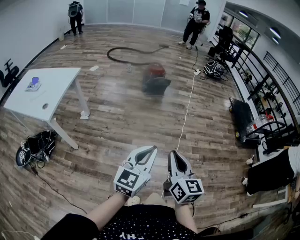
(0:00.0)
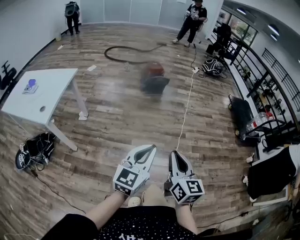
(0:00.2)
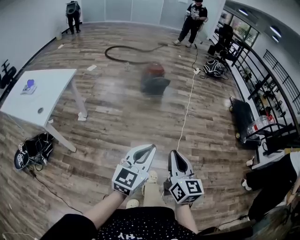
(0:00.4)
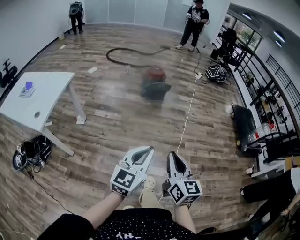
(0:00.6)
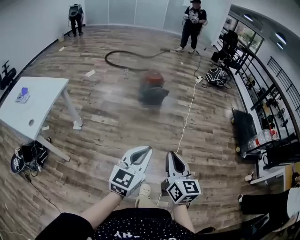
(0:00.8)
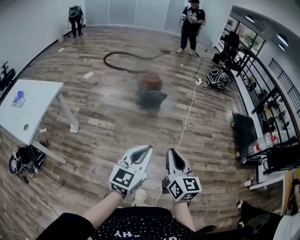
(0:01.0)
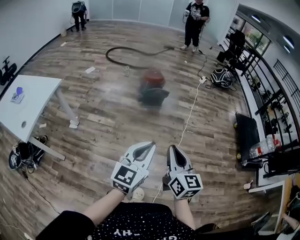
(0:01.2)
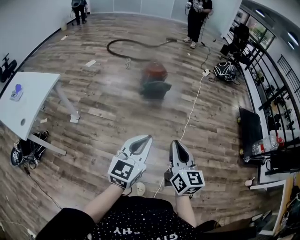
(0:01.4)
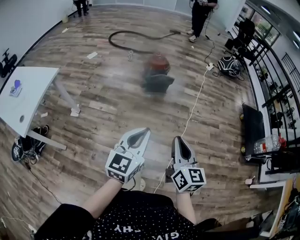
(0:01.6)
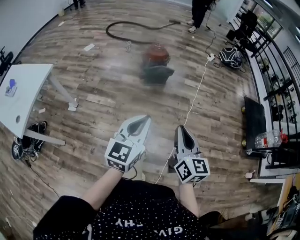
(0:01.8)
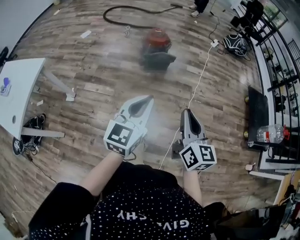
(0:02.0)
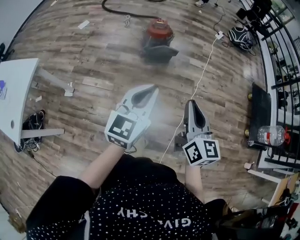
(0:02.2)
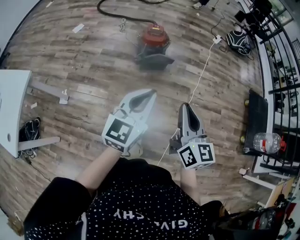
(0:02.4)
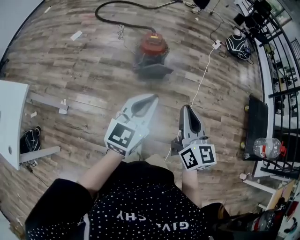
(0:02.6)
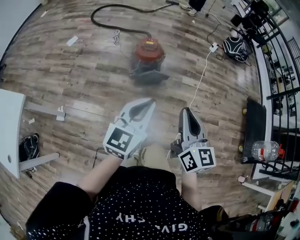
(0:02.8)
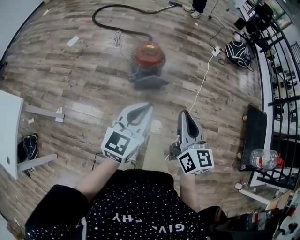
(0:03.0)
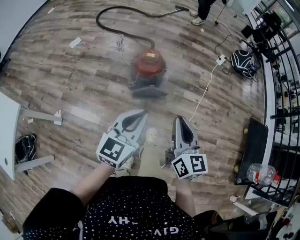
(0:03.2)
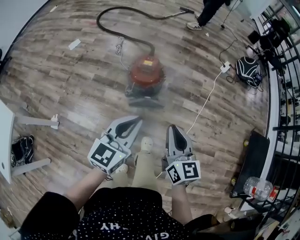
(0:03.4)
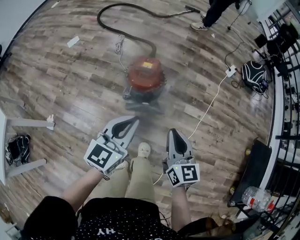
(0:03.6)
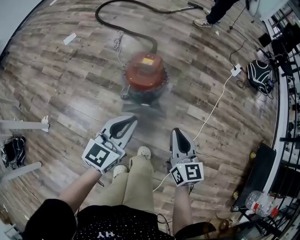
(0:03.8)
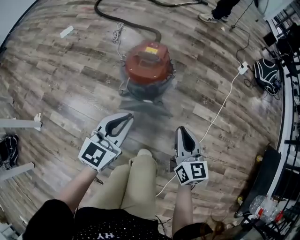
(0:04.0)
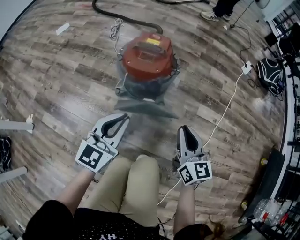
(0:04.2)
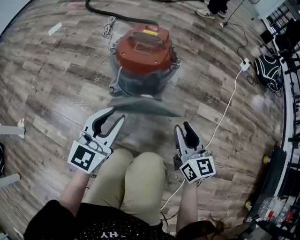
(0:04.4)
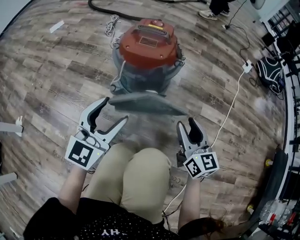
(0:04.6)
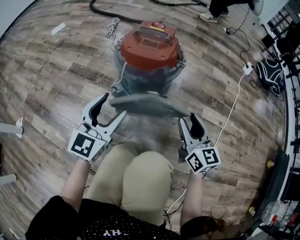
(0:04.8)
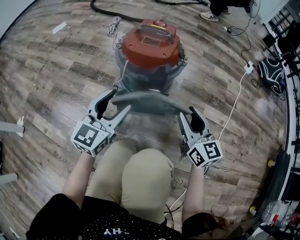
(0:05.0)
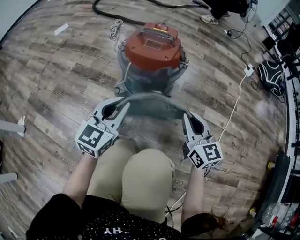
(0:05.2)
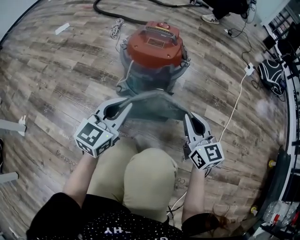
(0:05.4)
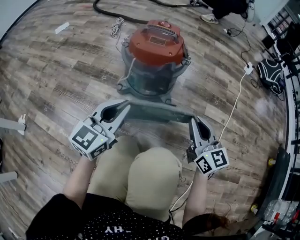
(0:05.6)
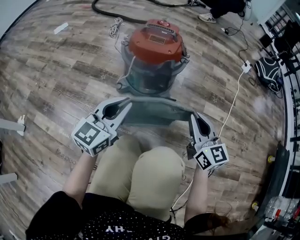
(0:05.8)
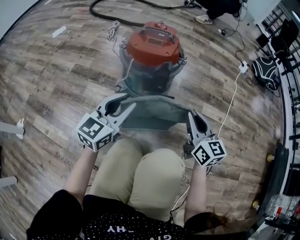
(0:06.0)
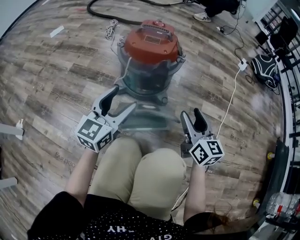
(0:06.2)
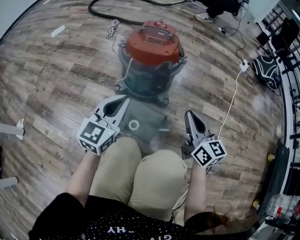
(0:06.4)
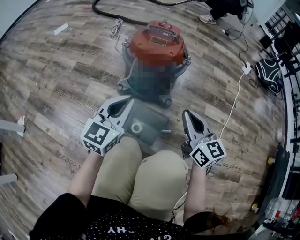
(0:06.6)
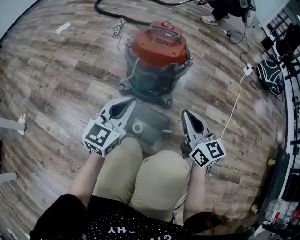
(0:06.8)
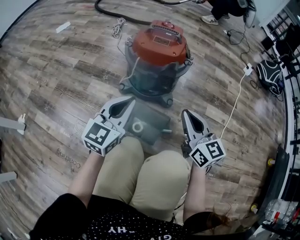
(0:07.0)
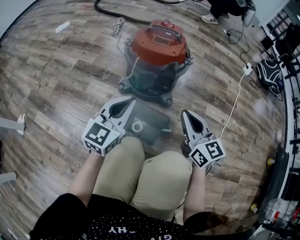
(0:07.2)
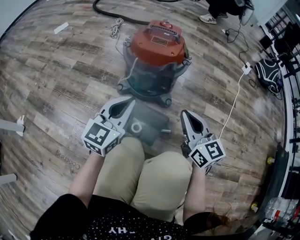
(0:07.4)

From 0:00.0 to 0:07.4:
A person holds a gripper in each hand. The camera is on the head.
From 0:00.0 to 0:01.4: The grippers both shift forward by approximately 35 cm.
From 0:01.4 to 0:03.0: Both grippers are carried forward, about 50 cm.
From 0:03.0 to 0:04.4: Both grippers travel together downward and forward, roughly 60 cm. The right gripper opens its fingers.
From 0:04.4 to 0:06.0: The left gripper is displaced downward by about 5 cm, and opens, then closes again.
From 0:06.0 to 0:07.4: The left gripper opens, then closes once more. Meanwhile the right gripper opens, then closes again.

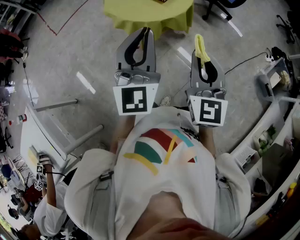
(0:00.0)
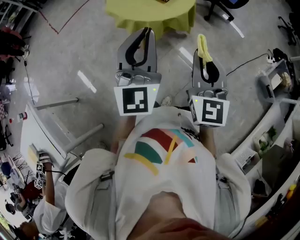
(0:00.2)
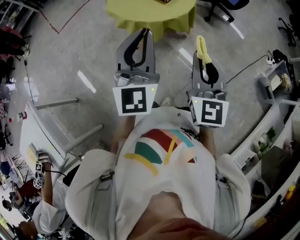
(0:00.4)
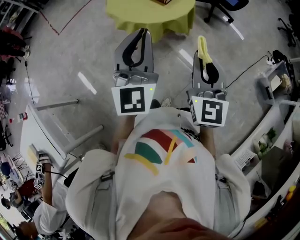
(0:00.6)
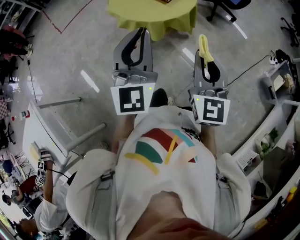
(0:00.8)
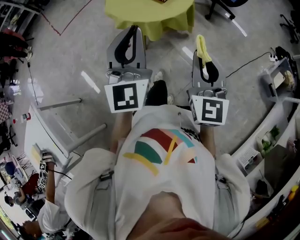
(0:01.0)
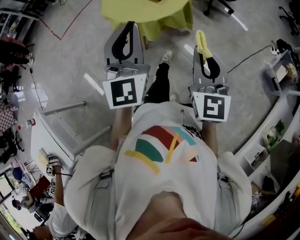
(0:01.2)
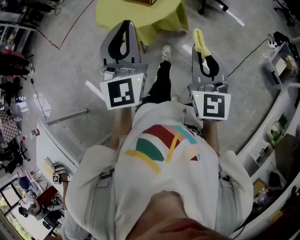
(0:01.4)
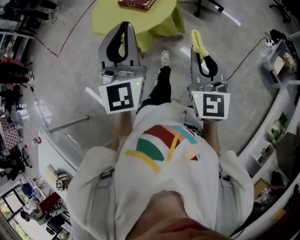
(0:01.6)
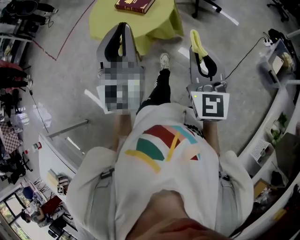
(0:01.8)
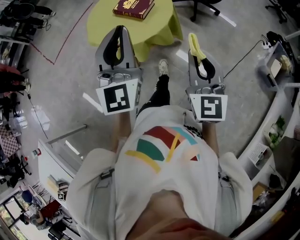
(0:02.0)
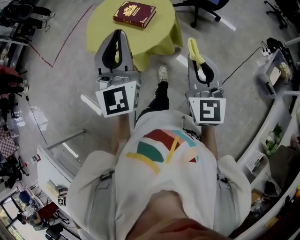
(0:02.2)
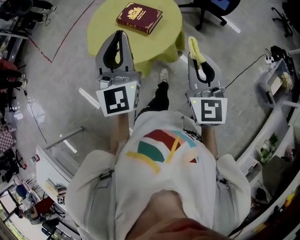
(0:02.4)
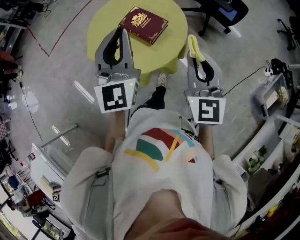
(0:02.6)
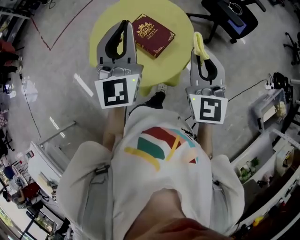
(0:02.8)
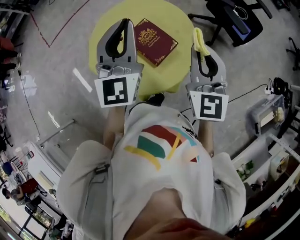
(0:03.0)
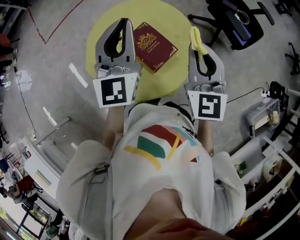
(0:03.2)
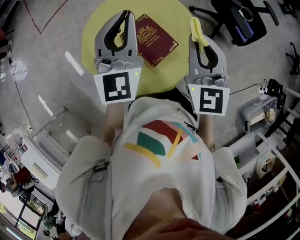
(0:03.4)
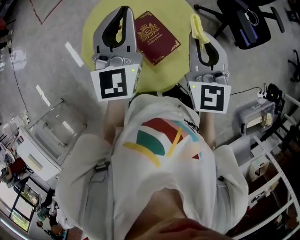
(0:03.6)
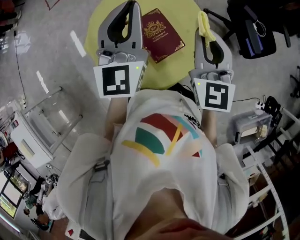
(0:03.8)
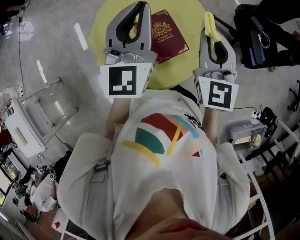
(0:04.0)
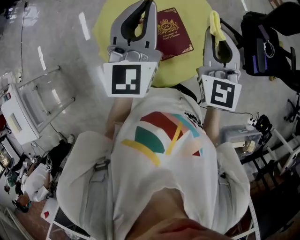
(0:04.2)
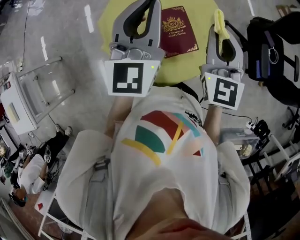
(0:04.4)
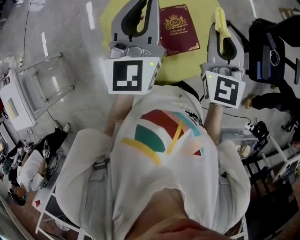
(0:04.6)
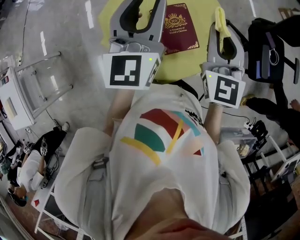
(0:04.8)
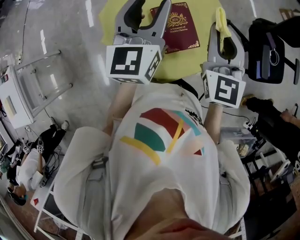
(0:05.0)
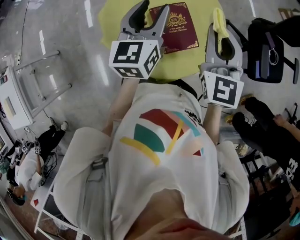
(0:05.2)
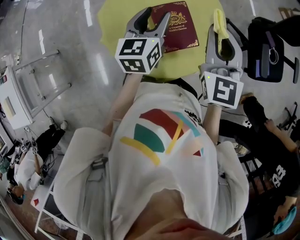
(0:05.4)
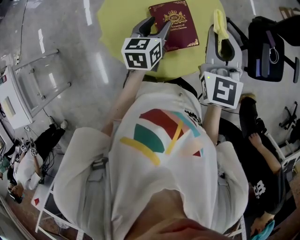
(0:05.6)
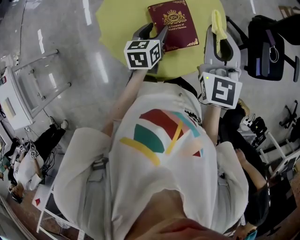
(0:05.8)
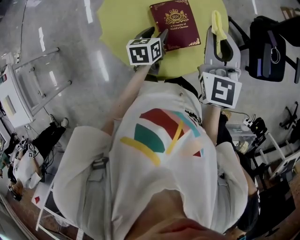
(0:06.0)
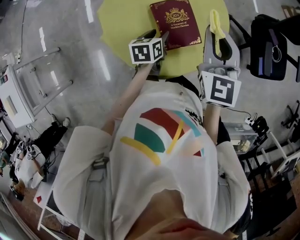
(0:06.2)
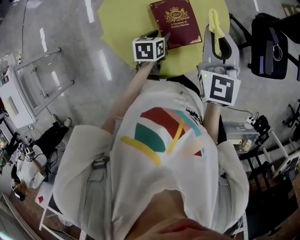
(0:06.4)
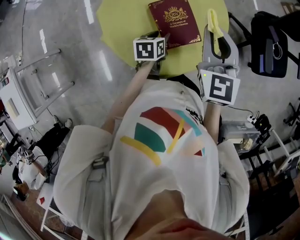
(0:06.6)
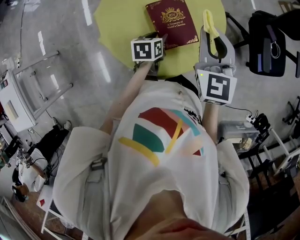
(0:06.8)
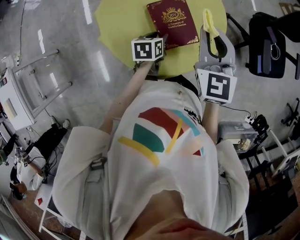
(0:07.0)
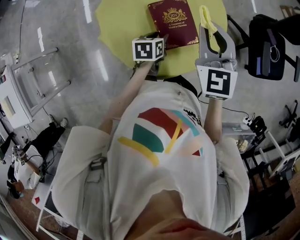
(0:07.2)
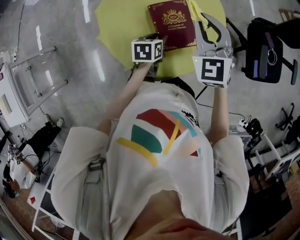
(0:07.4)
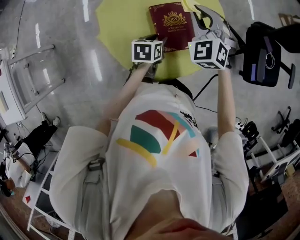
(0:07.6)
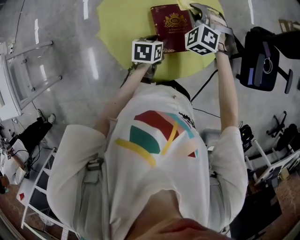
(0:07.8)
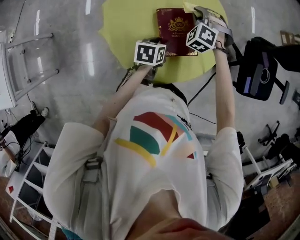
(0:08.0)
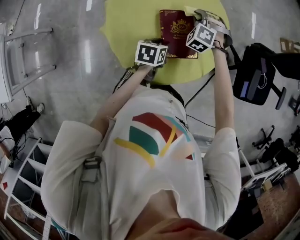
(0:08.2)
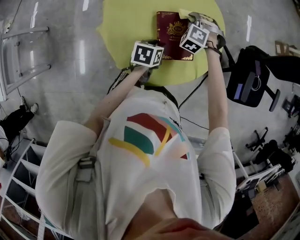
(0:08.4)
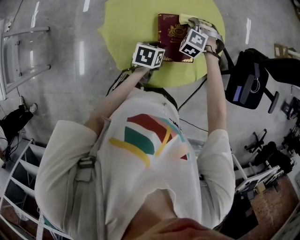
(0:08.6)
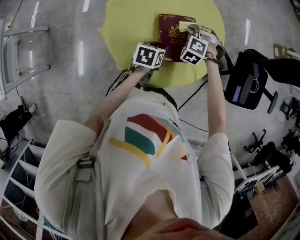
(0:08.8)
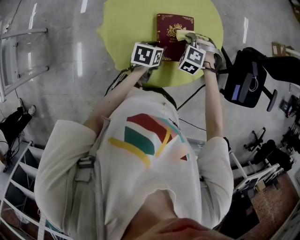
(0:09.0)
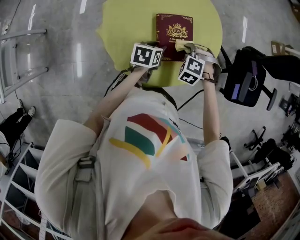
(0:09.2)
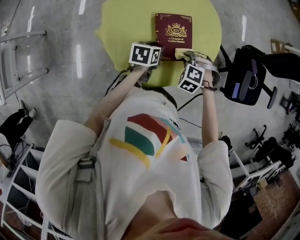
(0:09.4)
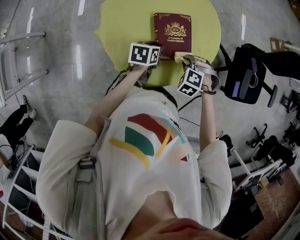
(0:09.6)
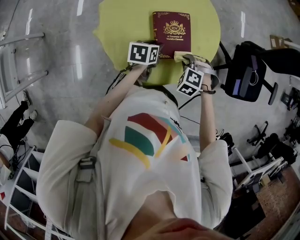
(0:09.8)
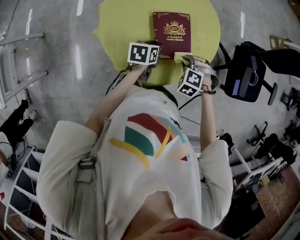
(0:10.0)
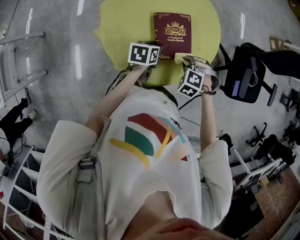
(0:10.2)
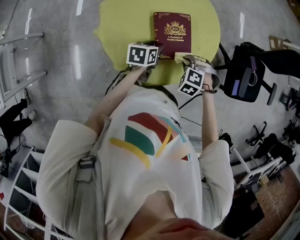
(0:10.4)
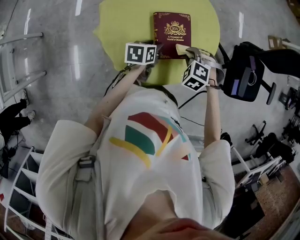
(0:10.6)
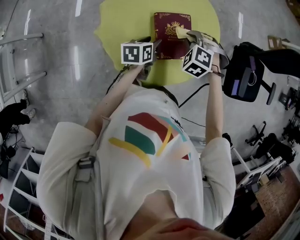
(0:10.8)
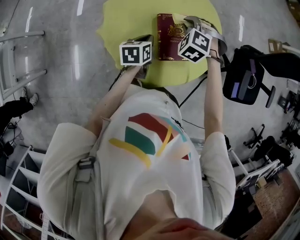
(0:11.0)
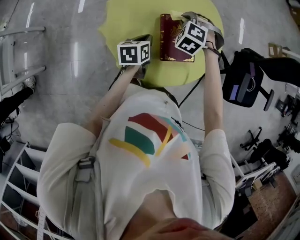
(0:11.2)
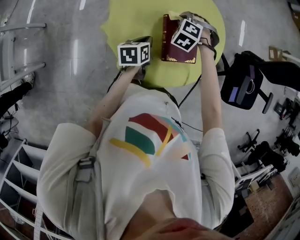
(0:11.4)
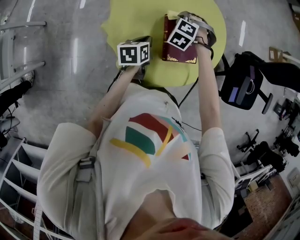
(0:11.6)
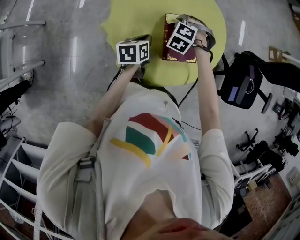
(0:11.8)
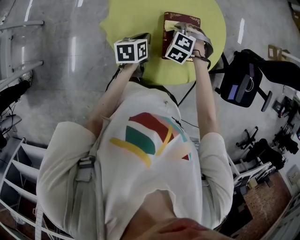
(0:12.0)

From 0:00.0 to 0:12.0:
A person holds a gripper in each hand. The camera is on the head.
From 0:00.0 to 0:01.6: The left gripper goes about 5 cm forward, while the right gripper is displaced to the right by about 5 cm.
From 0:01.6 to 0:03.0: Both grippers are carried forward, roughly 40 cm.
From 0:03.0 to 0:04.4: The left gripper ends up about 5 cm from where it was, and changes its angle by roughly 20 degrees. Meanwhile the right gripper moves forward, about 15 cm, and rotates about 30 degrees.
From 0:04.4 to 0:06.0: The left gripper is displaced downward by some 30 cm, points its fingers some 40 degrees further downward, and opens.
From 0:06.0 to 0:07.6: The right gripper goes approximately 10 cm downward, forward and to the left, and turns by some 40 degrees, while the left gripper shifts by roughly 5 cm.
From 0:07.6 to 0:09.0: The right gripper heads downward, covering some 15 cm, and tips its fingers downward by some 30 degrees.
From 0:09.0 to 0:10.4: The right gripper ends up about 10 cm from where it was.
From 0:10.4 to 0:12.0: The right gripper moves roughly 10 cm upward and comes back; the left gripper moves approximately 10 cm, and closes.

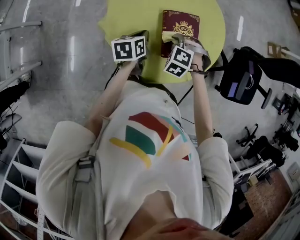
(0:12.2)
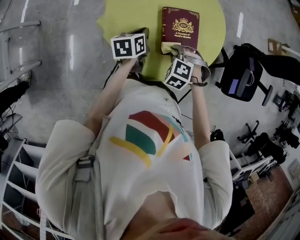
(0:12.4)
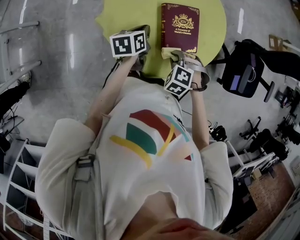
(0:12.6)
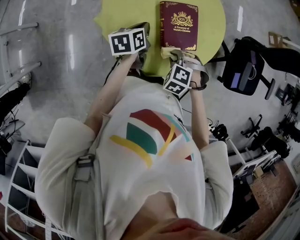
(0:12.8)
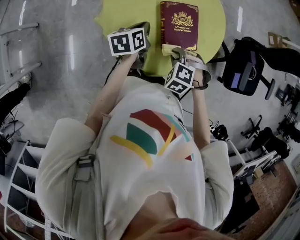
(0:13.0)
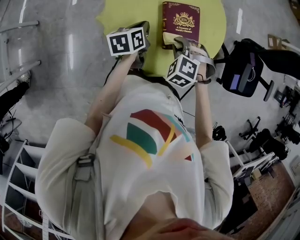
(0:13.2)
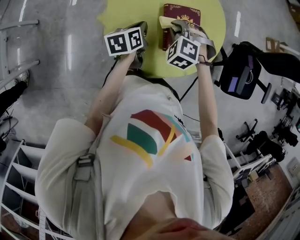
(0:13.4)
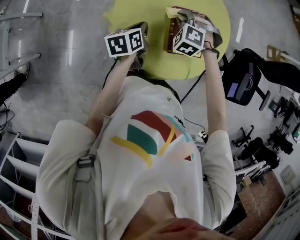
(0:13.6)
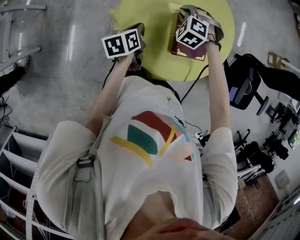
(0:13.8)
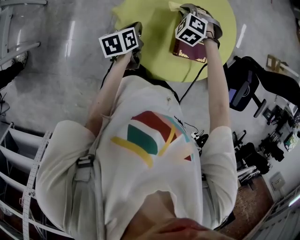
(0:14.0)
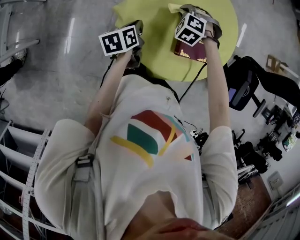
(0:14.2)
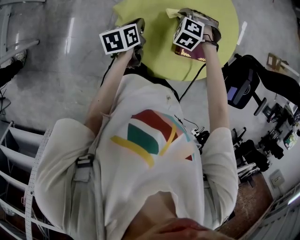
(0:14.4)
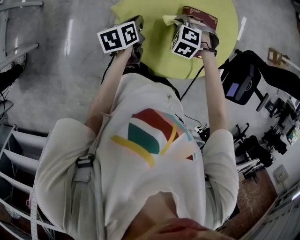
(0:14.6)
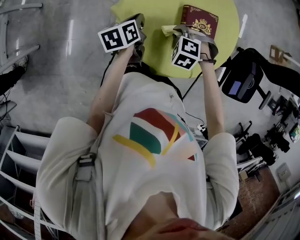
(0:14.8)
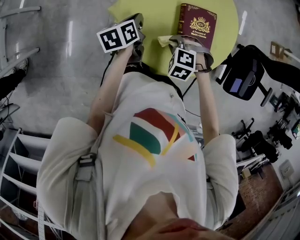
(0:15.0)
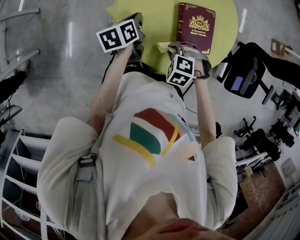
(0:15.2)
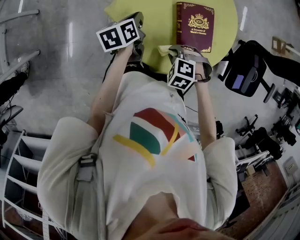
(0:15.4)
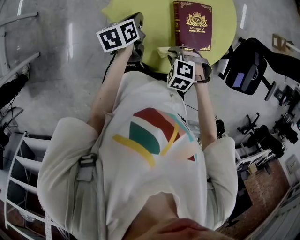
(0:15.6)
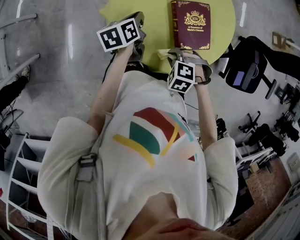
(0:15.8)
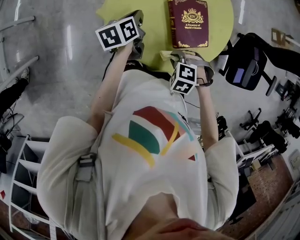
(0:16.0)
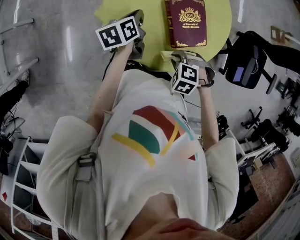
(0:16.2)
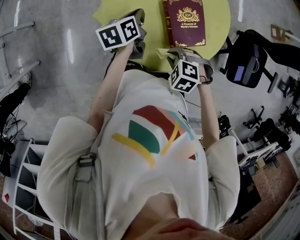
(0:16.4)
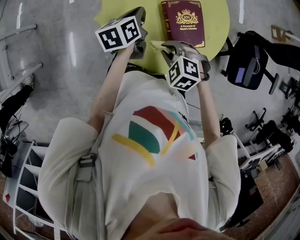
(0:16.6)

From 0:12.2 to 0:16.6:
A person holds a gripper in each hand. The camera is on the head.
From 0:12.2 to 0:13.6: The right gripper shifts by about 10 cm.
From 0:13.6 to 0:15.2: The right gripper ends up about 20 cm from where it was, and turns by roughly 20 degrees; the left gripper changes place by approximately 5 cm.
From 0:15.2 to 0:16.6: The left gripper changes place by some 10 cm. Meanwhile the right gripper shifts some 5 cm upward.
